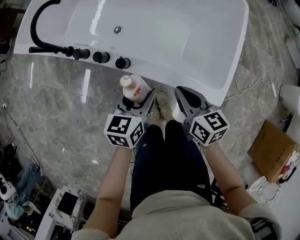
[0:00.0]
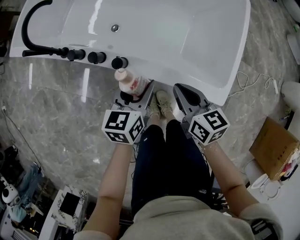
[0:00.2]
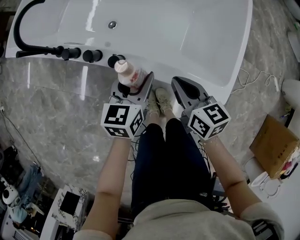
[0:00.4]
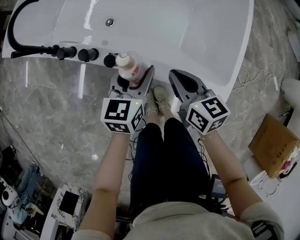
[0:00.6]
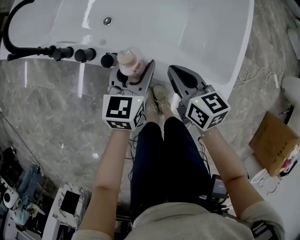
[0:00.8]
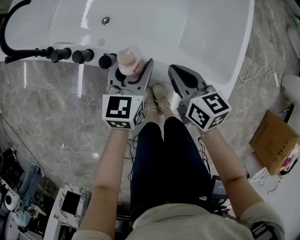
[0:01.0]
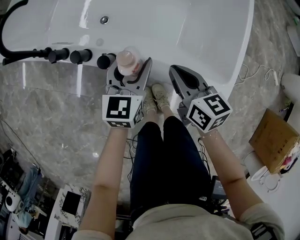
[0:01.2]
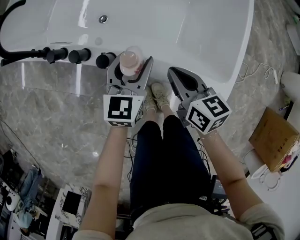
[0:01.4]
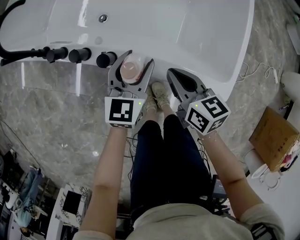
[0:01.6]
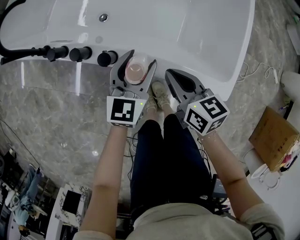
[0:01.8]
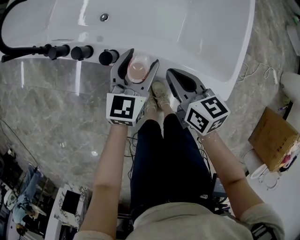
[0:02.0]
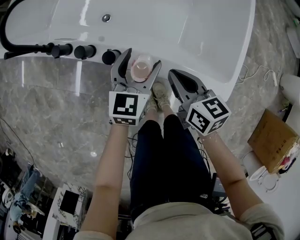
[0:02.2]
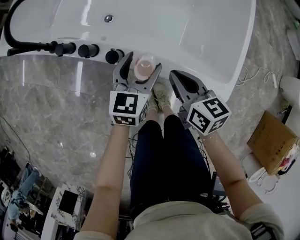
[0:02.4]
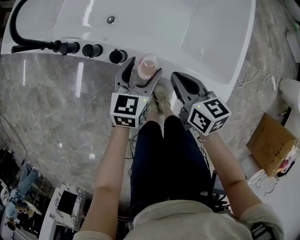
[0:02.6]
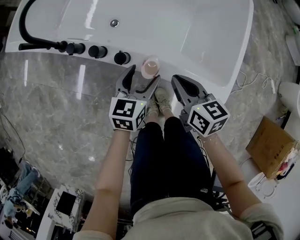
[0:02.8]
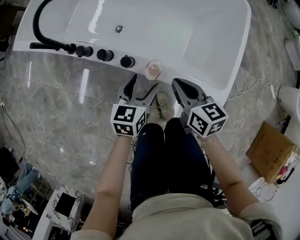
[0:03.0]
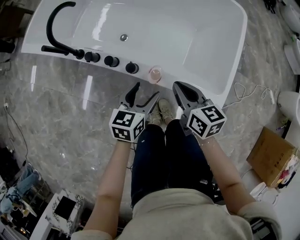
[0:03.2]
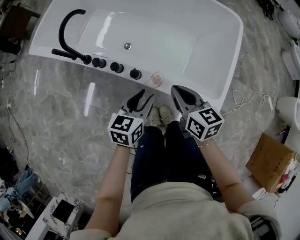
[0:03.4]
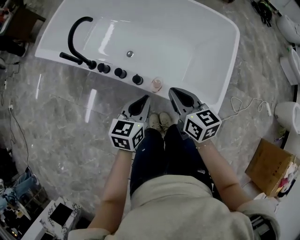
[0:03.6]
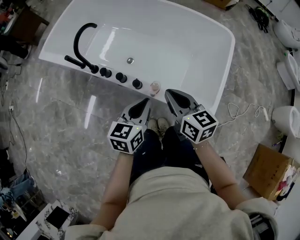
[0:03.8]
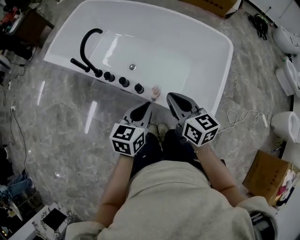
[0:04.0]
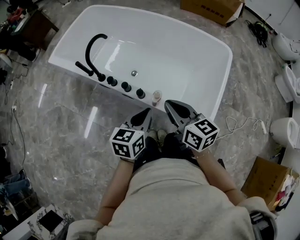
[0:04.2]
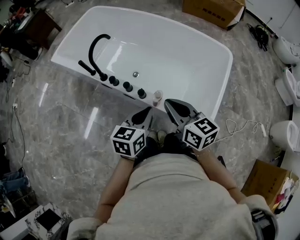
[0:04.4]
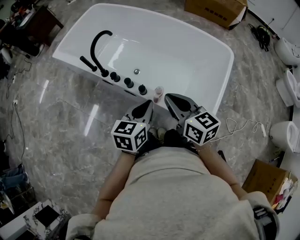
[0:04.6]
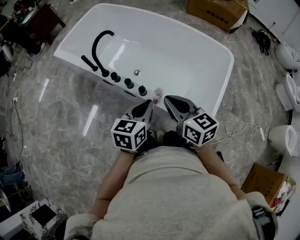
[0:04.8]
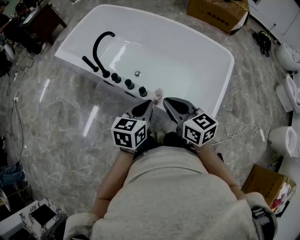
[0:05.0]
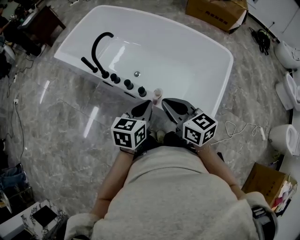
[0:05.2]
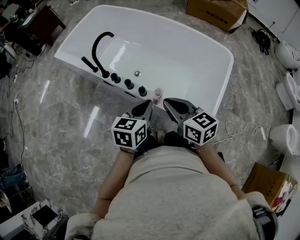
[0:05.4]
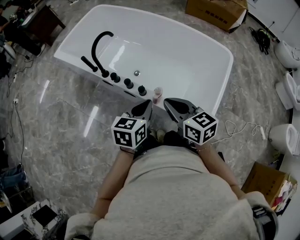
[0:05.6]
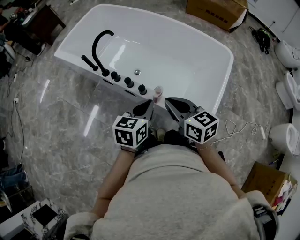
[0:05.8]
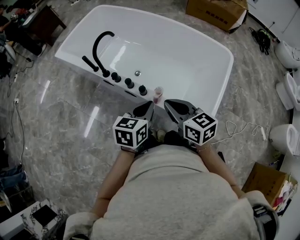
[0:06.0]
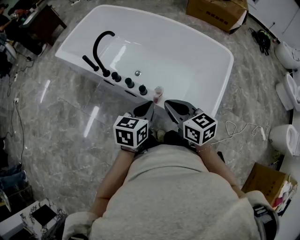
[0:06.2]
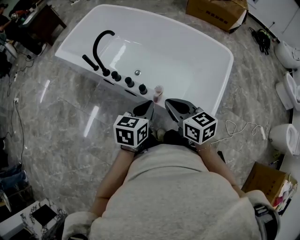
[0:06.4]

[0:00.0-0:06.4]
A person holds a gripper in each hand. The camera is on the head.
0:00.0 to 0:01.6: The right gripper shifts about 5 cm downward; the left gripper moves forward and downward, roughly 10 cm, and changes its angle by roughly 20 degrees.
0:01.6 to 0:03.2: The left gripper travels backward and upward by about 10 cm, and changes its angle by roughly 20 degrees; the right gripper travels upward by approximately 10 cm.
0:03.2 to 0:04.8: Both grippers move upward, approximately 20 cm. The right gripper turns by roughly 20 degrees. Meanwhile the left gripper closes up.
0:04.8 to 0:06.4: The grippers move only a little.

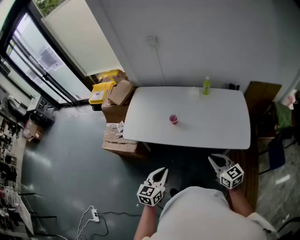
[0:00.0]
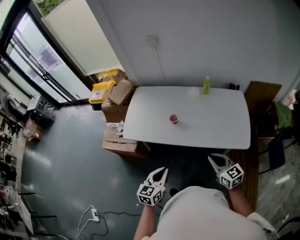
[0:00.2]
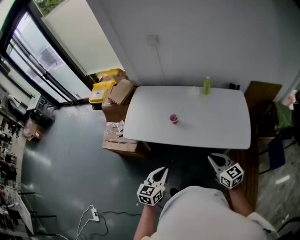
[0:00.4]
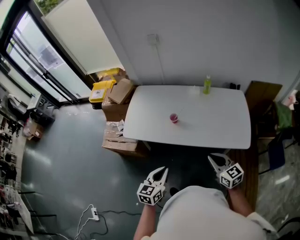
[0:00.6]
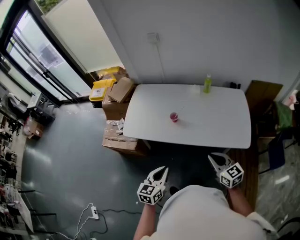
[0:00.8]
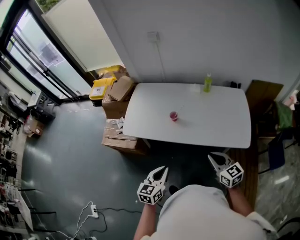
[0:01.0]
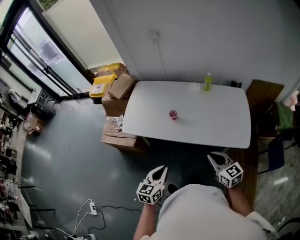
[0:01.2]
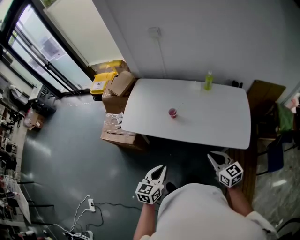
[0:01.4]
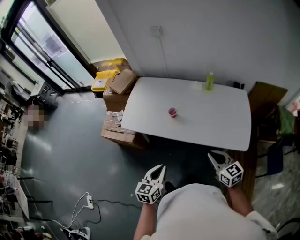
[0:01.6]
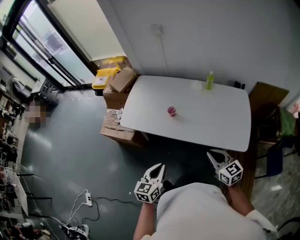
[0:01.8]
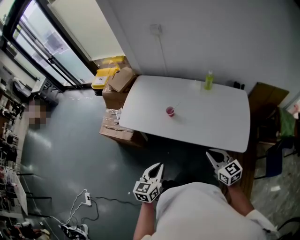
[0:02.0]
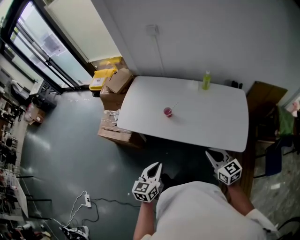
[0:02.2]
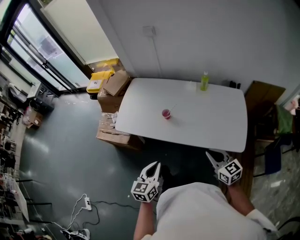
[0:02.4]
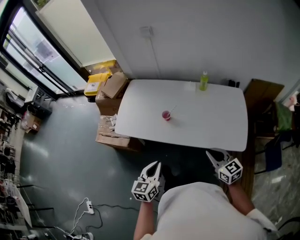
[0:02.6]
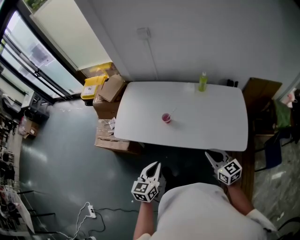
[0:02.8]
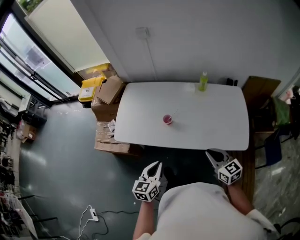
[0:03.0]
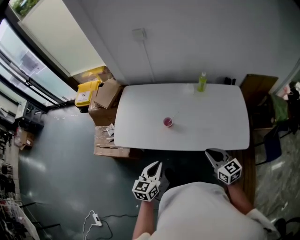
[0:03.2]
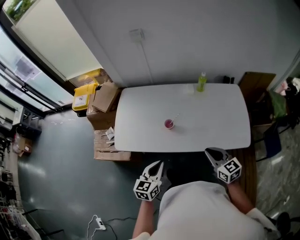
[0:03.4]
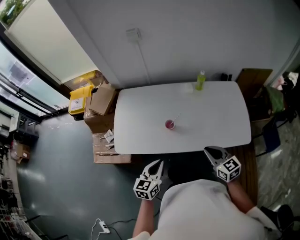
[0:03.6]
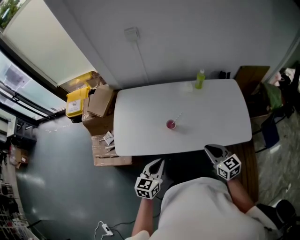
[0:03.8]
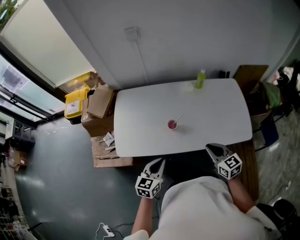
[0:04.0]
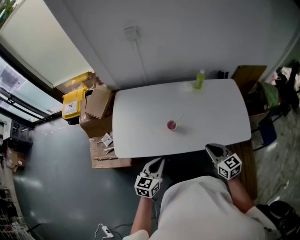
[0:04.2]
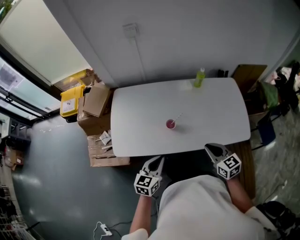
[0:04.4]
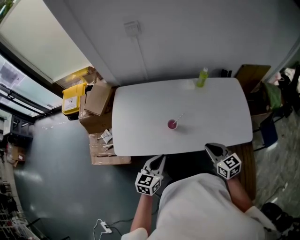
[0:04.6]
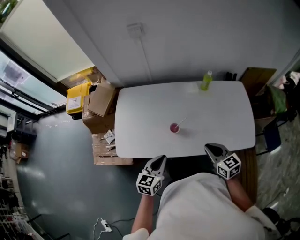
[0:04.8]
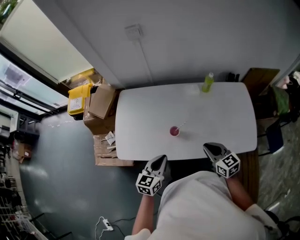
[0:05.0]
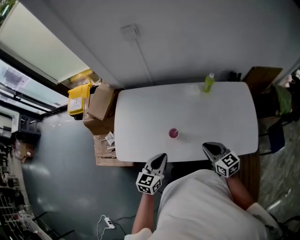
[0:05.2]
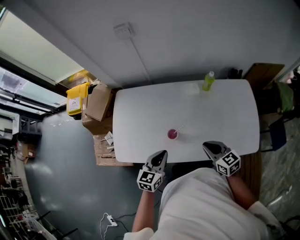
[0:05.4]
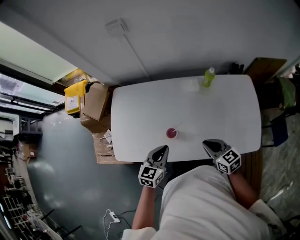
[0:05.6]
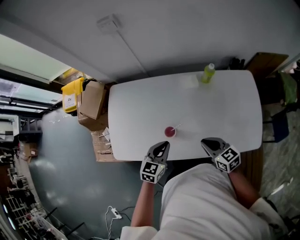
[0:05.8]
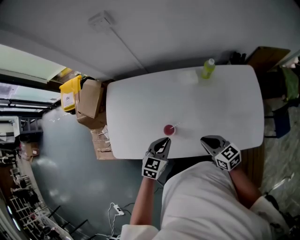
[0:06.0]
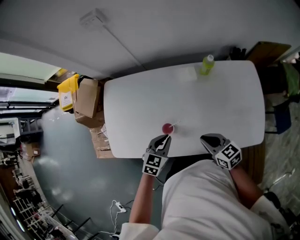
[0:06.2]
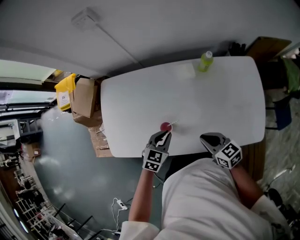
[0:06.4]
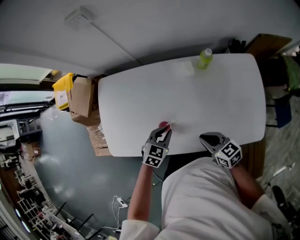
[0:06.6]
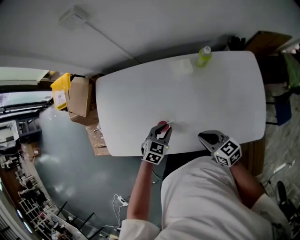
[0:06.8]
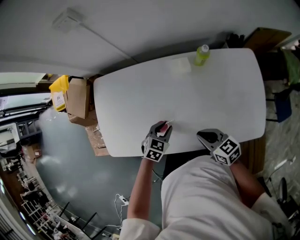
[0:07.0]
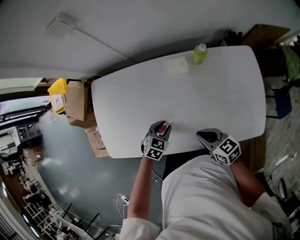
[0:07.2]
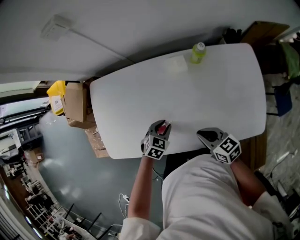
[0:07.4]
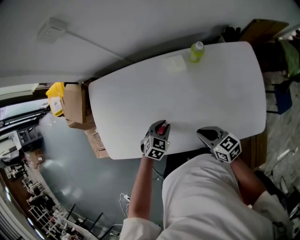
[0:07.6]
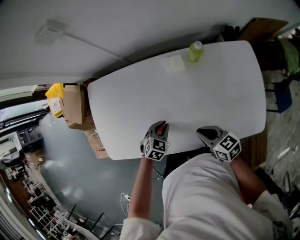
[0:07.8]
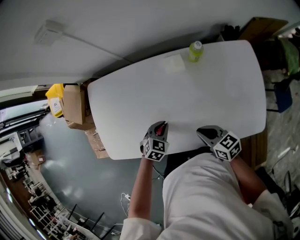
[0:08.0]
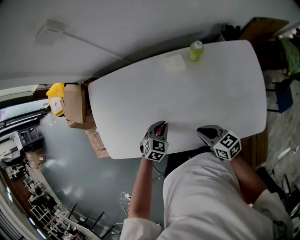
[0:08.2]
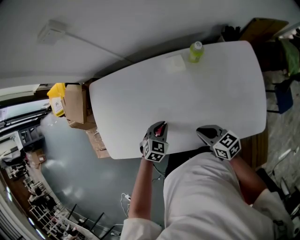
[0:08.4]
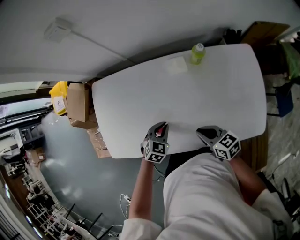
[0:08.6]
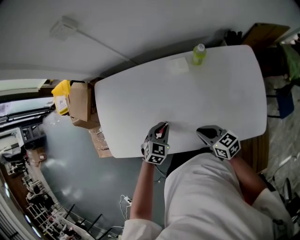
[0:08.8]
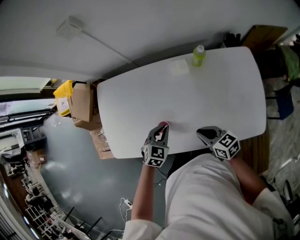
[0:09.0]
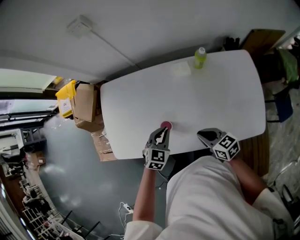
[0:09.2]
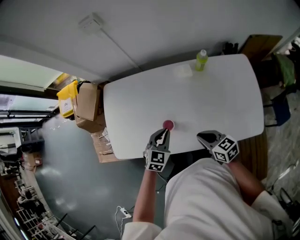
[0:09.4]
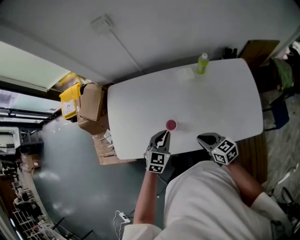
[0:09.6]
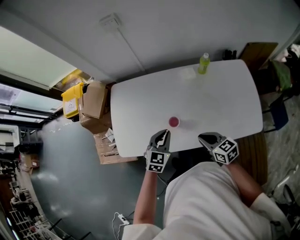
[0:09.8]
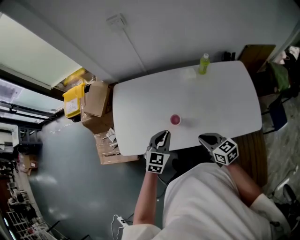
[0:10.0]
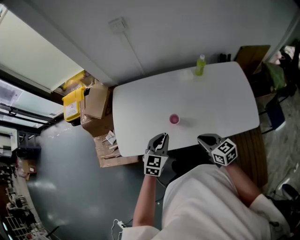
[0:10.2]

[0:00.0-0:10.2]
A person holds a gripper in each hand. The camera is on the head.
0:00.0 to 0:01.4: The grippers stay close to where they were, moving slightly.
0:01.4 to 0:03.0: Both grippers travel together forward, approximately 10 cm.
0:03.0 to 0:04.4: The left gripper moves forward and to the left, approximately 15 cm. The right gripper is displaced to the left and forward by approximately 10 cm.
0:04.4 to 0:05.8: The left gripper shifts roughly 20 cm forward and to the right, while the right gripper is displaced forward and downward by about 15 cm.
0:05.8 to 0:07.2: The right gripper travels downward by some 5 cm; the left gripper moves downward, some 15 cm, turns by roughly 30 degrees, and opens up.
0:07.2 to 0:08.8: The left gripper closes up.
0:08.8 to 0:10.2: The right gripper moves backward, to the left and upward, approximately 15 cm; the left gripper goes some 20 cm upward, to the left and backward, and changes its angle by roughly 30 degrees.

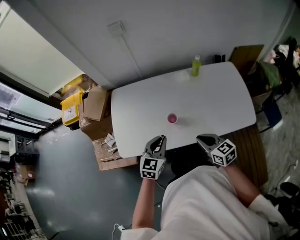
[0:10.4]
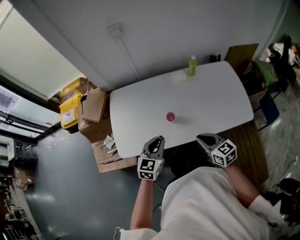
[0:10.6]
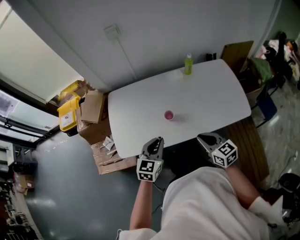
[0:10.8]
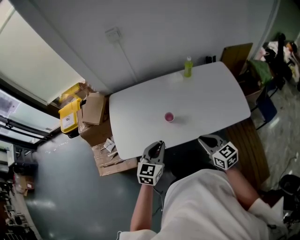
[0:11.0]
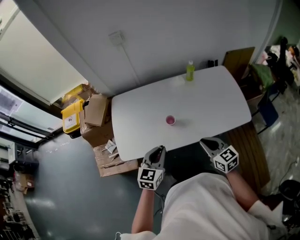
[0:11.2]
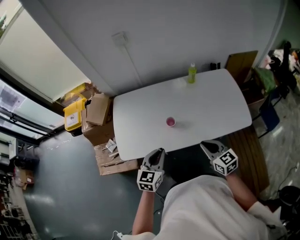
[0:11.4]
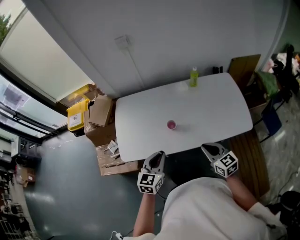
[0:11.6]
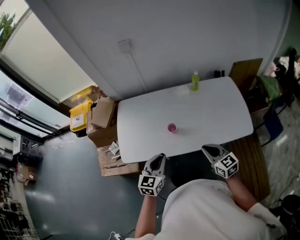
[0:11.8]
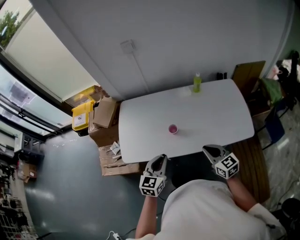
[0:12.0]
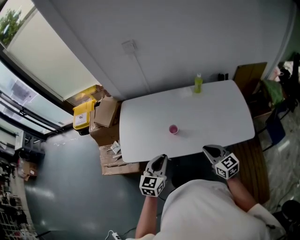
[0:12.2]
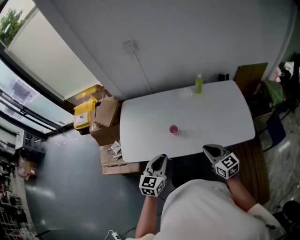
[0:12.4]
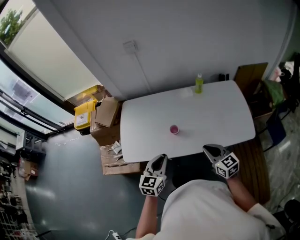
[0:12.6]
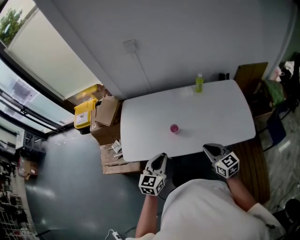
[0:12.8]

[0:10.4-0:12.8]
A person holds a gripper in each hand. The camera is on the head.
0:10.4 to 0:11.6: The right gripper moves some 5 cm, while the left gripper goes some 10 cm backward.
0:11.6 to 0:12.8: The grippers stay close to where they were, moving slightly.

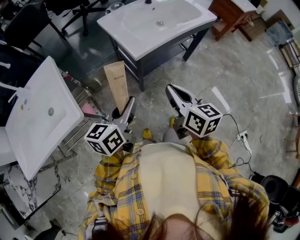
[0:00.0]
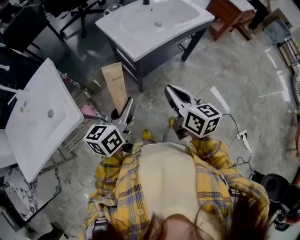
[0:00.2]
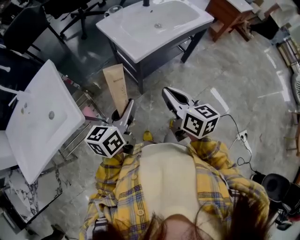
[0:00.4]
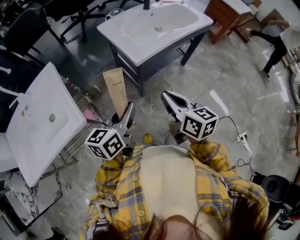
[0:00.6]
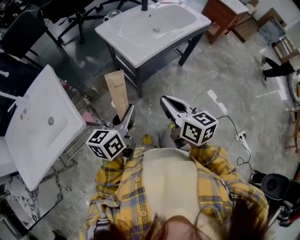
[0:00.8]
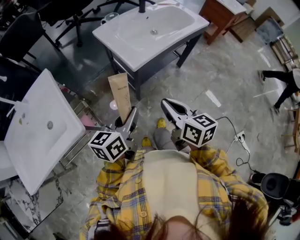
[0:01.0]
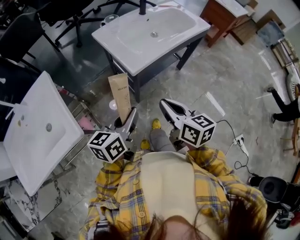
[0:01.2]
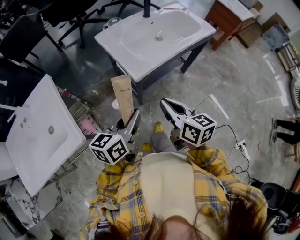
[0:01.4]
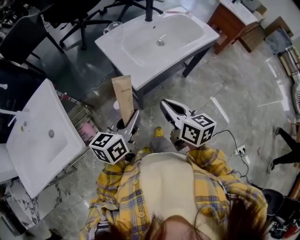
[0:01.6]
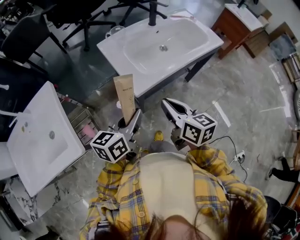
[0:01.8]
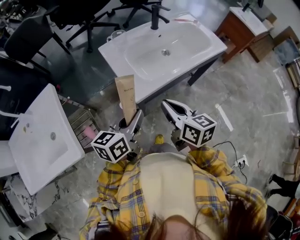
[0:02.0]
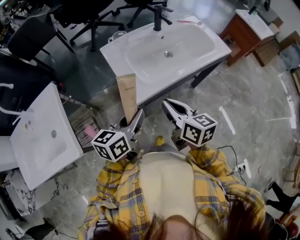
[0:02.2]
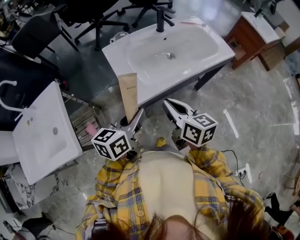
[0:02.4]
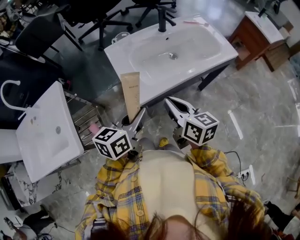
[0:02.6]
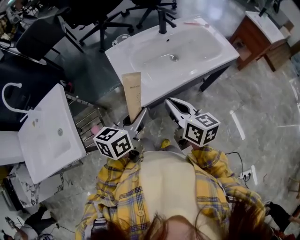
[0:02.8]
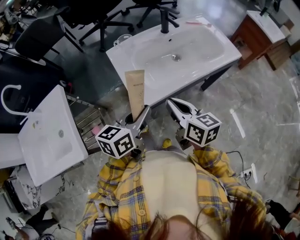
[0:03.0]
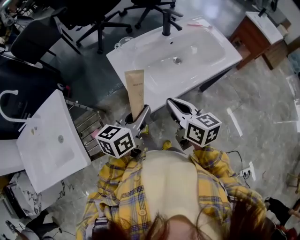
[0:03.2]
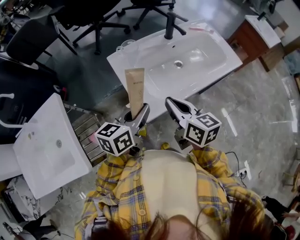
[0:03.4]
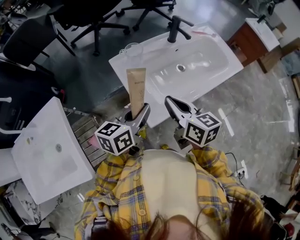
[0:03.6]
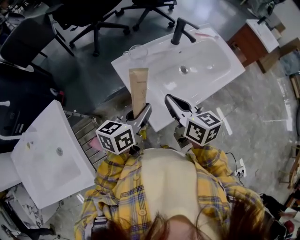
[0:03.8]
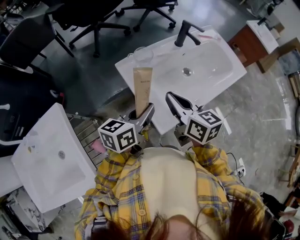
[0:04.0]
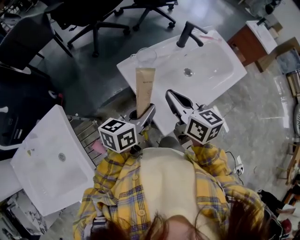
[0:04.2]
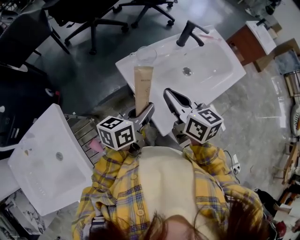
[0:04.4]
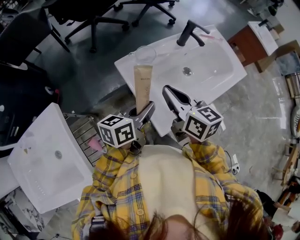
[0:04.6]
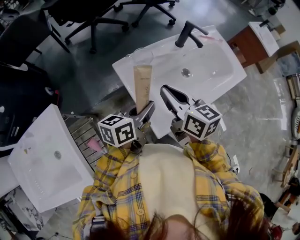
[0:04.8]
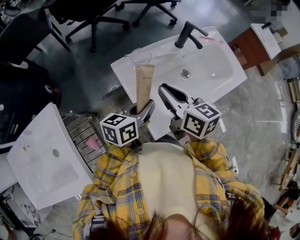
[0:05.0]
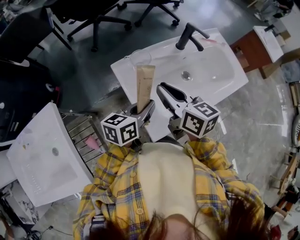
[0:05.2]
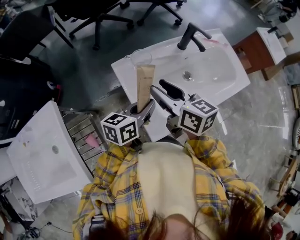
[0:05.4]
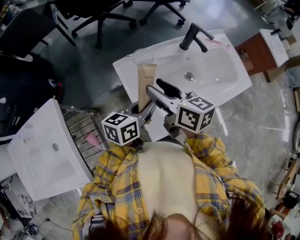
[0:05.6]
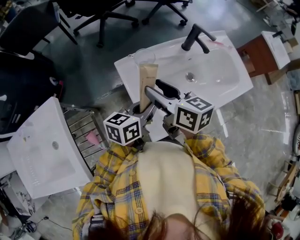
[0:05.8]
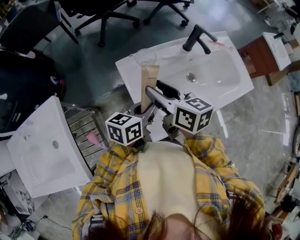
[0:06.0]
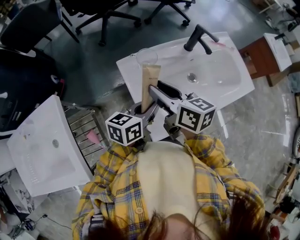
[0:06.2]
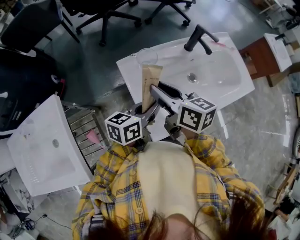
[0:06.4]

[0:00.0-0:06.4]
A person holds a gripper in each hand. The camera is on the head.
0:00.0 to 0:01.6: The grippers both shift forward by about 10 cm.
0:01.6 to 0:03.2: The grippers both shift forward by about 15 cm.
0:03.2 to 0:04.8: Both grippers move forward and to the left, roughly 15 cm.
0:04.8 to 0:06.4: The right gripper opens.
